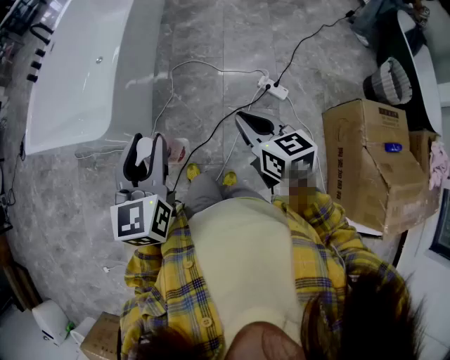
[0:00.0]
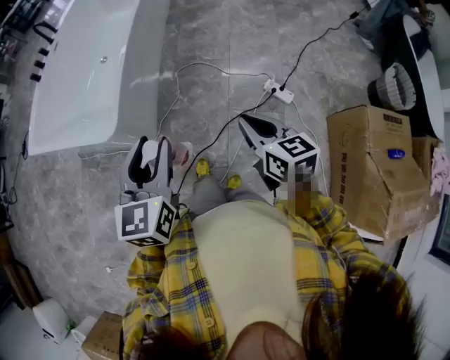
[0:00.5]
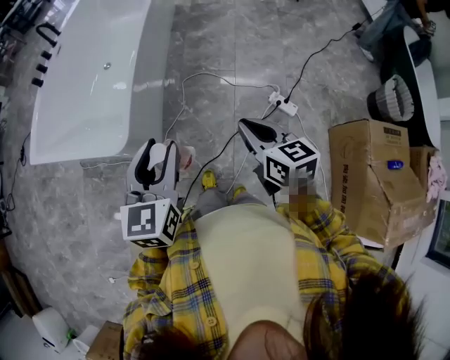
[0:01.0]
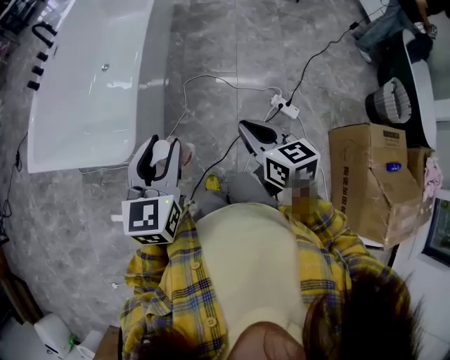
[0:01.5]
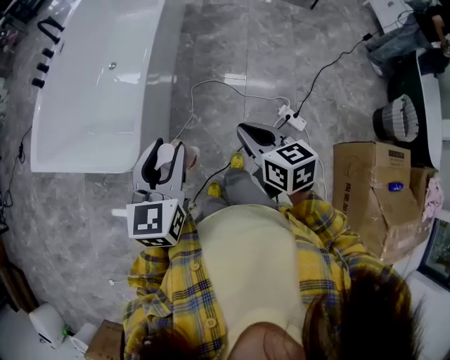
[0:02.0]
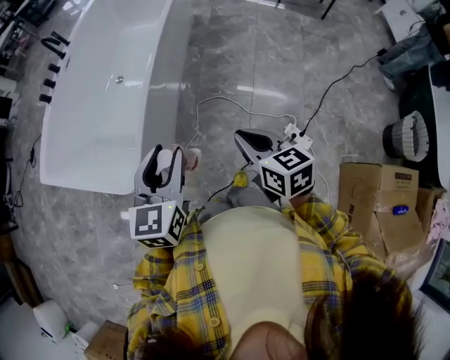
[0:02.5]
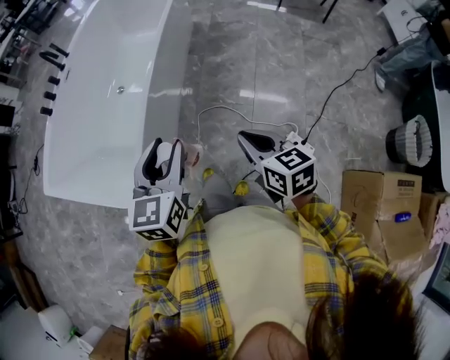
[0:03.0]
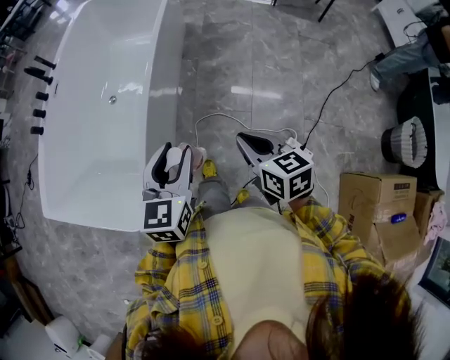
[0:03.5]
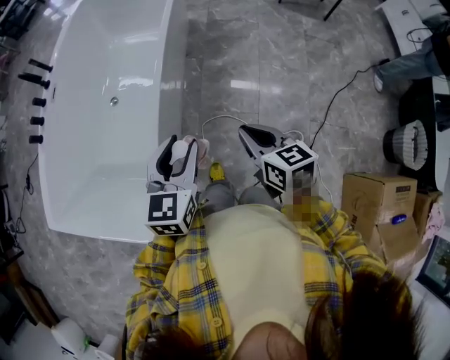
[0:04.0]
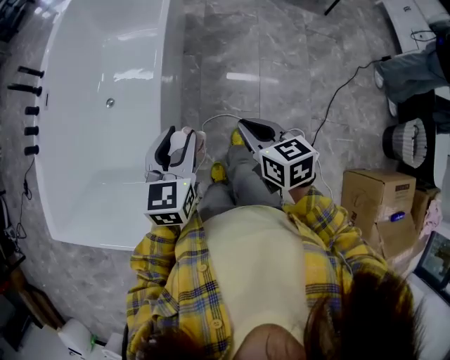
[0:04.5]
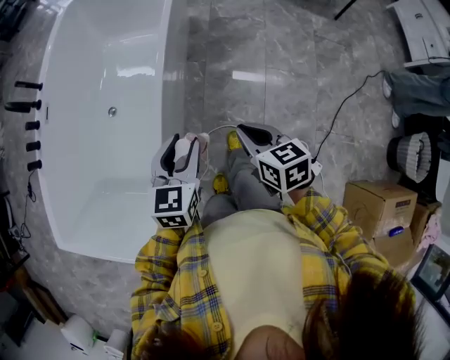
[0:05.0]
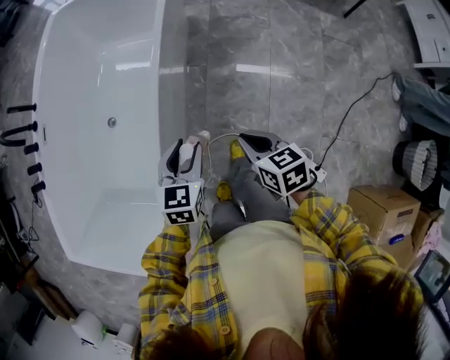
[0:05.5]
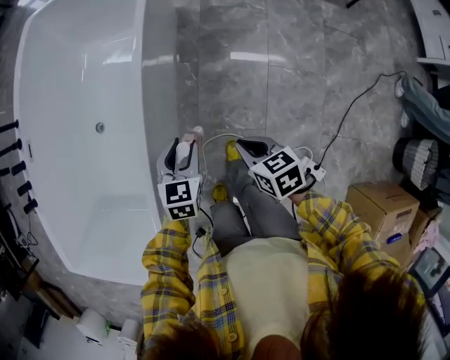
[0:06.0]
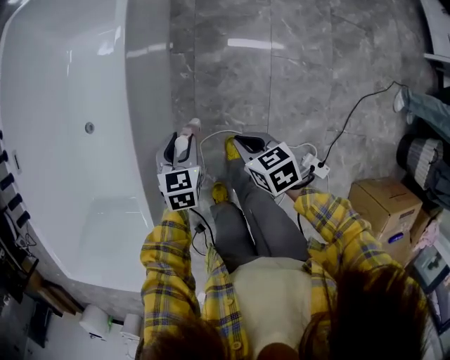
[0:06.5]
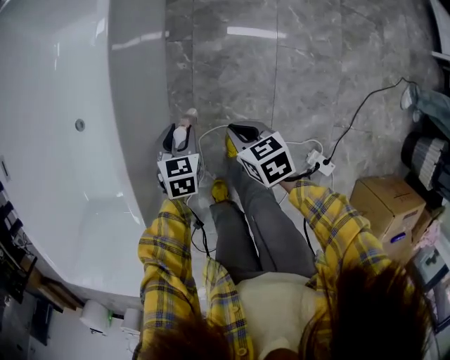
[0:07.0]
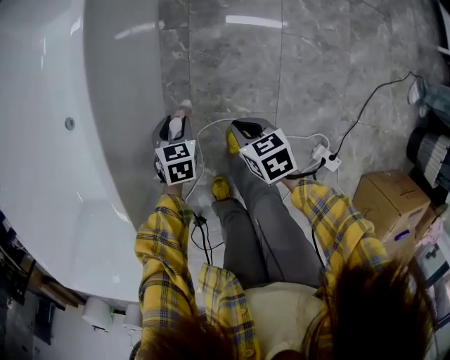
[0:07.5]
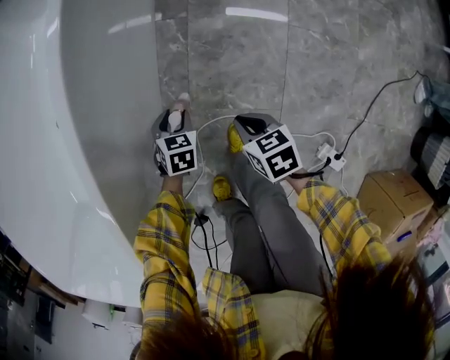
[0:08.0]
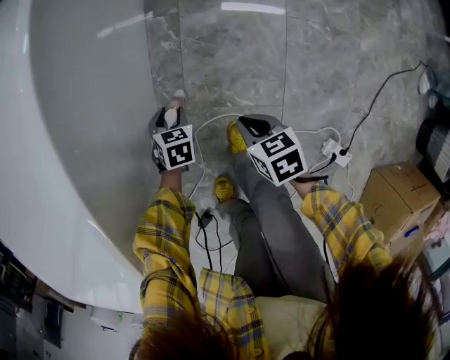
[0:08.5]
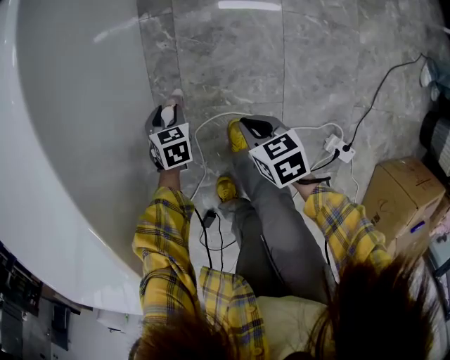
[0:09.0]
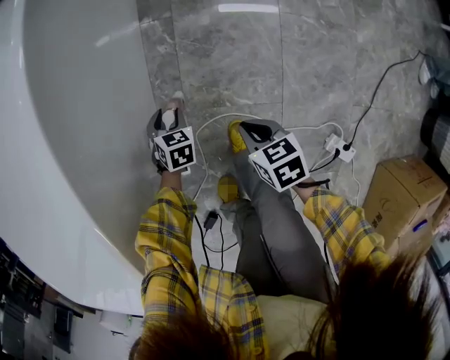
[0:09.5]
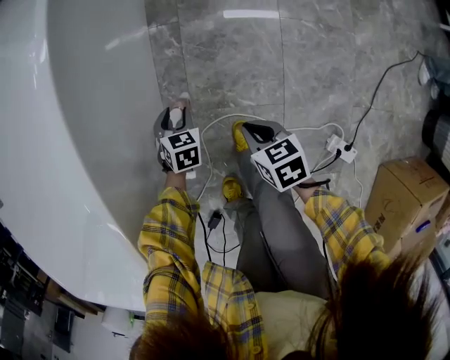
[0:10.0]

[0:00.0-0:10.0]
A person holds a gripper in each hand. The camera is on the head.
0:00.0 to 0:02.0: The right gripper travels forward and to the left by roughly 20 cm. The left gripper moves forward, some 20 cm.
0:02.0 to 0:04.0: Both grippers move forward, roughly 30 cm.
0:04.0 to 0:06.0: The grippers both shift forward and downward by approximately 35 cm. The left gripper rotates some 20 degrees. The right gripper turns by roughly 20 degrees.
0:06.0 to 0:08.0: The two grippers go approximately 30 cm downward. The left gripper swivels some 20 degrees.
0:08.0 to 0:10.0: The grippers move only a little.

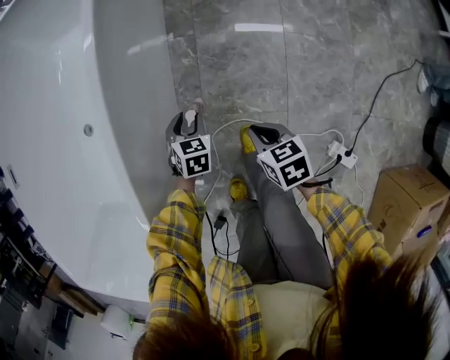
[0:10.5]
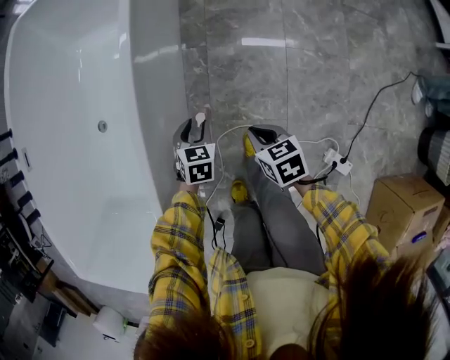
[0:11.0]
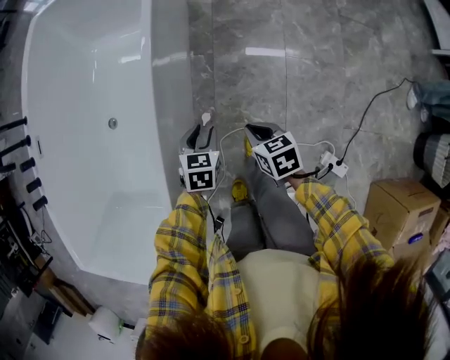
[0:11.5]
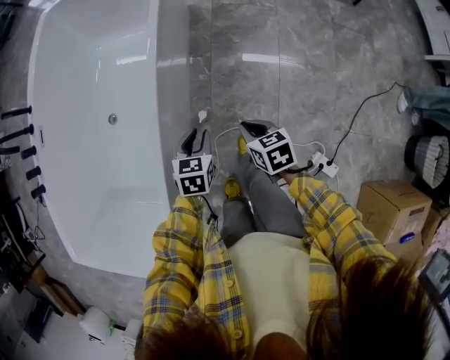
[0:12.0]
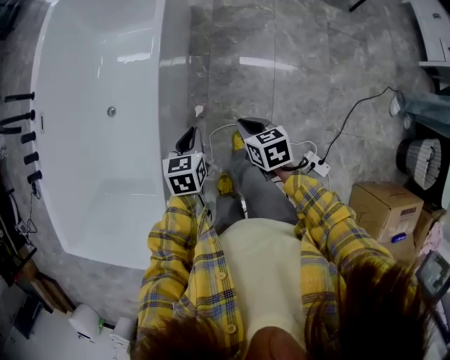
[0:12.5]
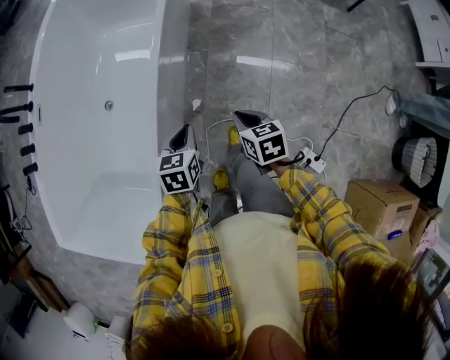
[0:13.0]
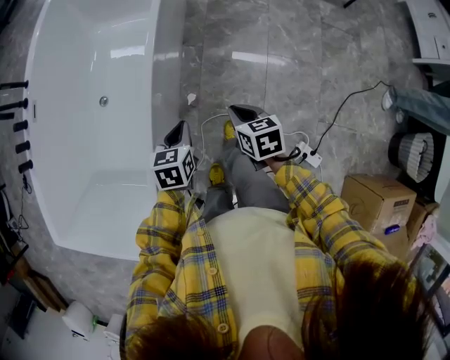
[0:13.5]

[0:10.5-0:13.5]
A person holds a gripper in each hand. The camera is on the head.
0:10.5 to 0:12.0: The grippers both shift upward by some 20 cm.
0:12.0 to 0:13.5: Both grippers travel together upward, roughly 5 cm. The left gripper closes its fingers.

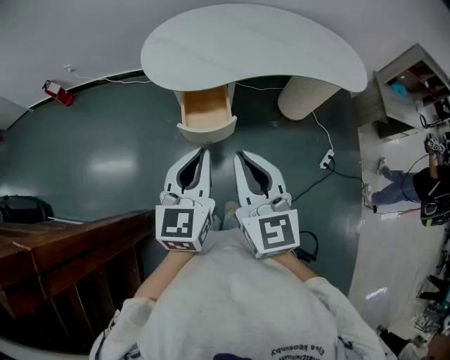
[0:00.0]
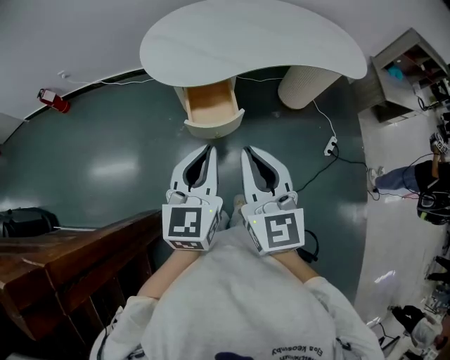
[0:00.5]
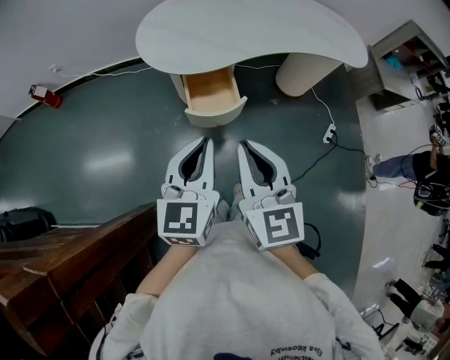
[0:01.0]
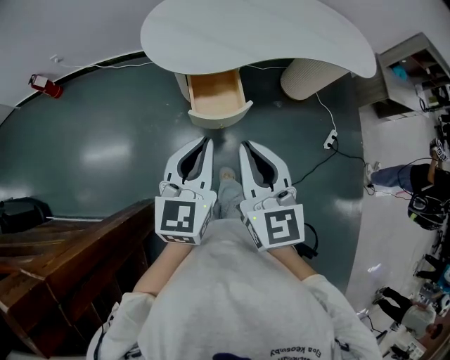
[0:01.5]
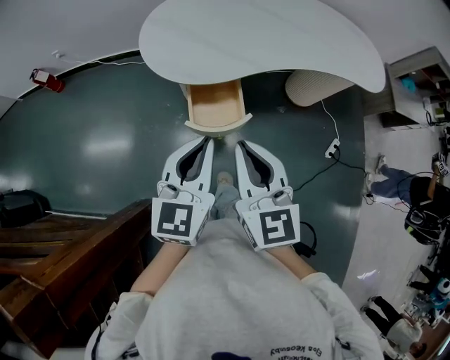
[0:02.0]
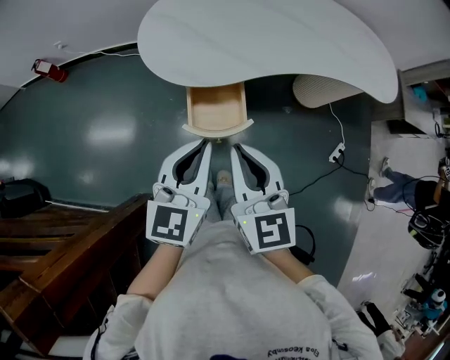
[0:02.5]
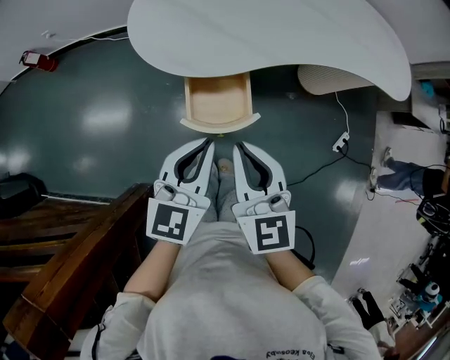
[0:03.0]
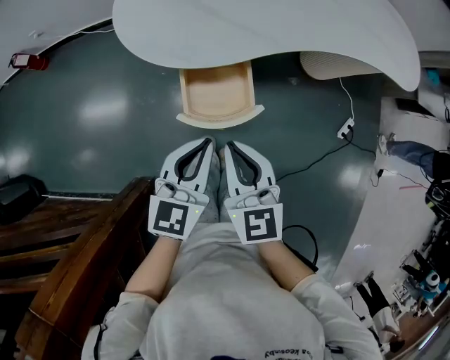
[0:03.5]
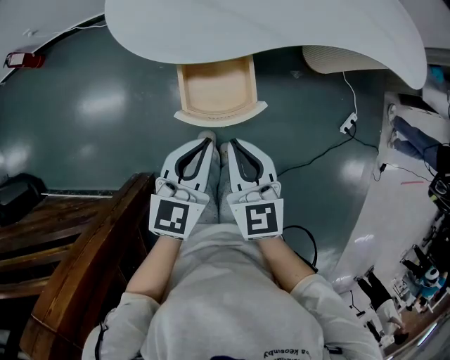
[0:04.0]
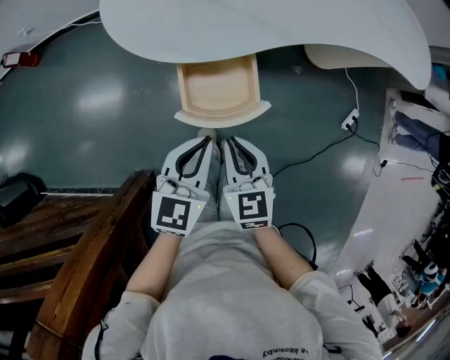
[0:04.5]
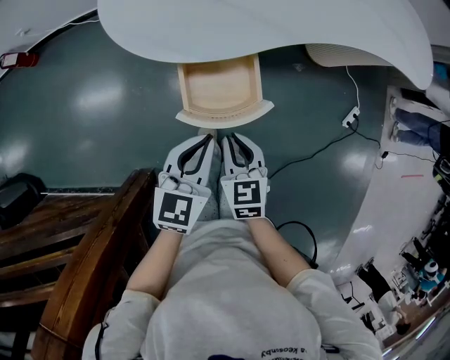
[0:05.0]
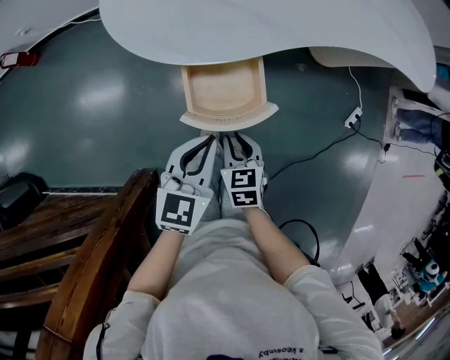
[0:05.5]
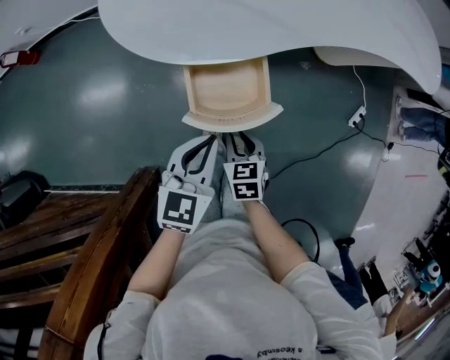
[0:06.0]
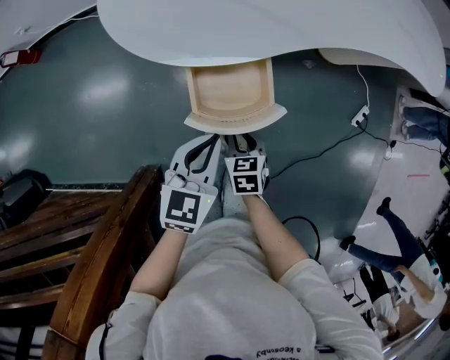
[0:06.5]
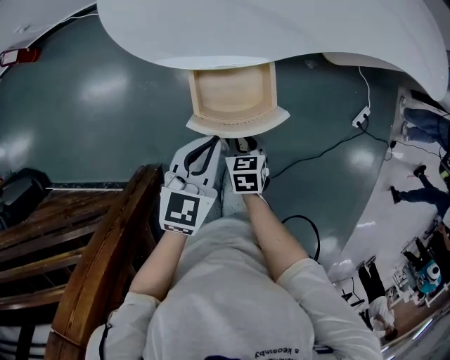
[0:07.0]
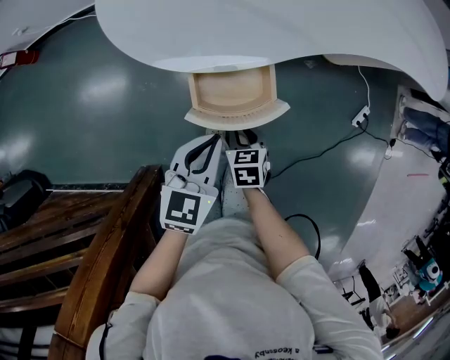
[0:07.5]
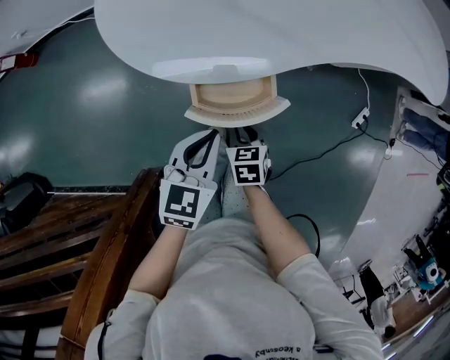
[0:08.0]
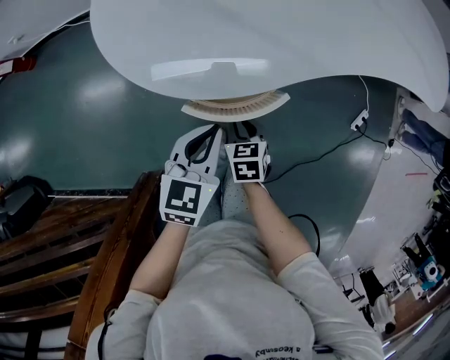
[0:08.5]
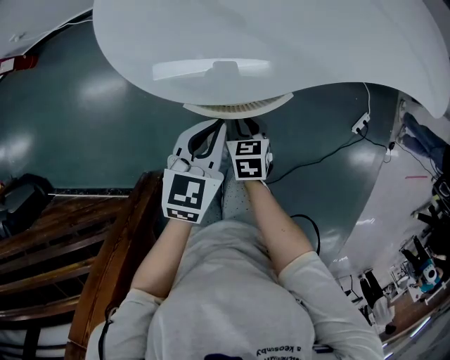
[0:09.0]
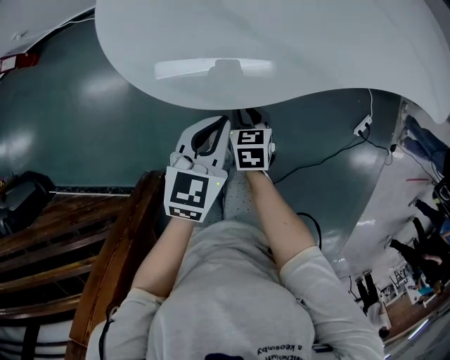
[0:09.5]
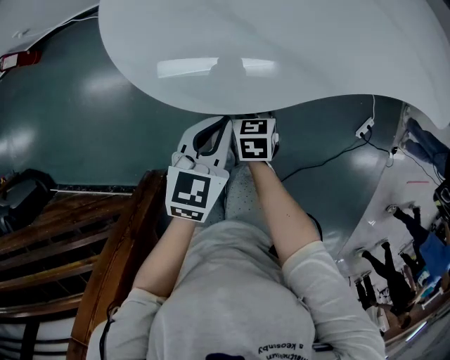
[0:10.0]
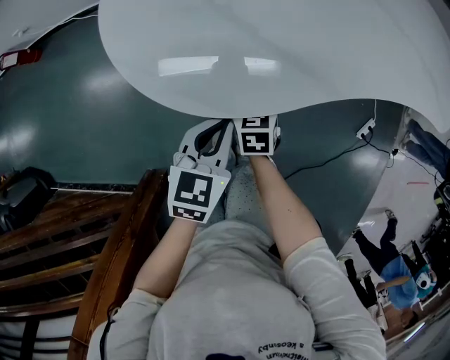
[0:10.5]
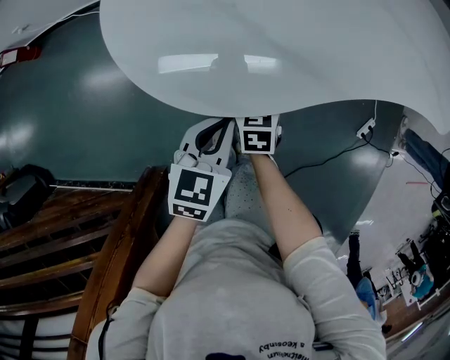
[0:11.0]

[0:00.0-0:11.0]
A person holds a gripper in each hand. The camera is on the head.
0:00.0 to 0:02.0: The grippers both shift forward and to the left by approximately 10 cm.
0:02.0 to 0:03.5: Both grippers move downward, roughly 15 cm.
0:03.5 to 0:05.5: The right gripper travels downward by roughly 20 cm, and rotates approximately 30 degrees. Meanwhile the left gripper moves downward, approximately 10 cm.
0:05.5 to 0:07.5: The right gripper shifts some 5 cm downward.
0:07.5 to 0:09.0: The grippers both shift forward by approximately 10 cm.
0:09.0 to 0:11.0: The right gripper travels forward by approximately 10 cm.

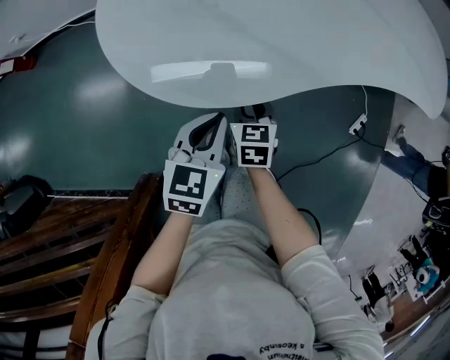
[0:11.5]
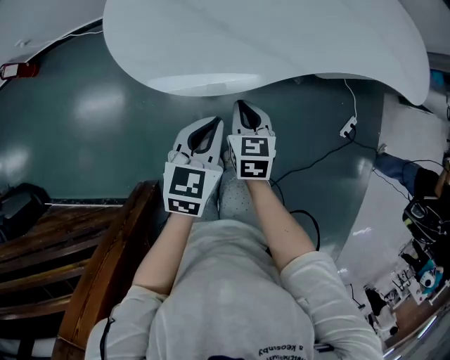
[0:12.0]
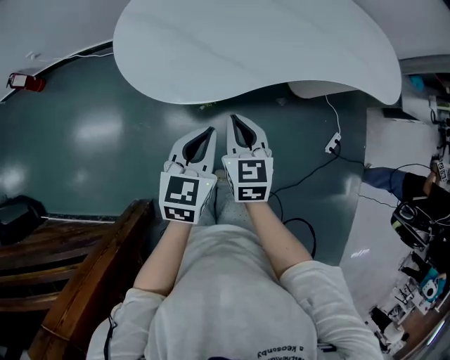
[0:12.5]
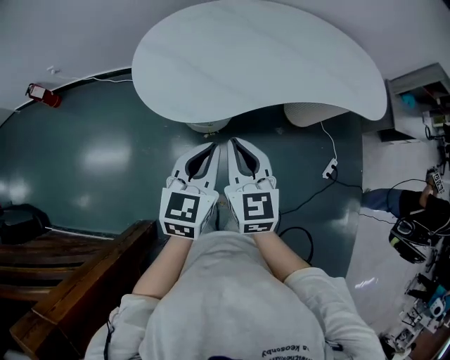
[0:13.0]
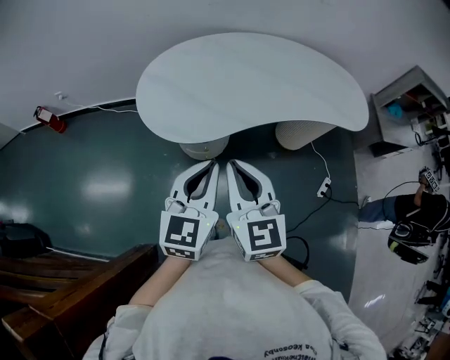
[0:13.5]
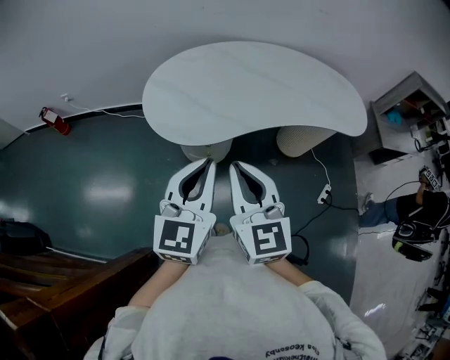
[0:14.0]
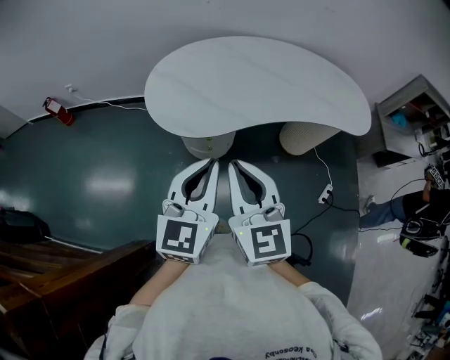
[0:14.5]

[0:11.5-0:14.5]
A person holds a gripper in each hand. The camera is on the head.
0:11.5 to 0:13.0: The left gripper is displaced upward by some 20 cm; the right gripper is displaced upward by some 30 cm, and tips its fingers upward by some 30 degrees.
0:13.0 to 0:14.5: Both grippers move upward and backward, some 15 cm.
